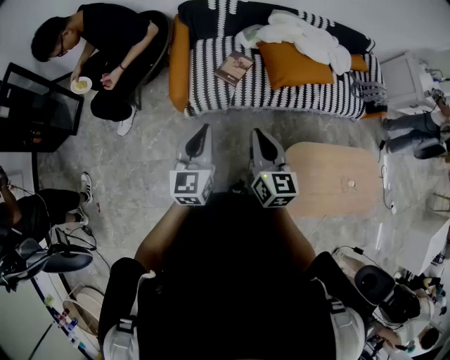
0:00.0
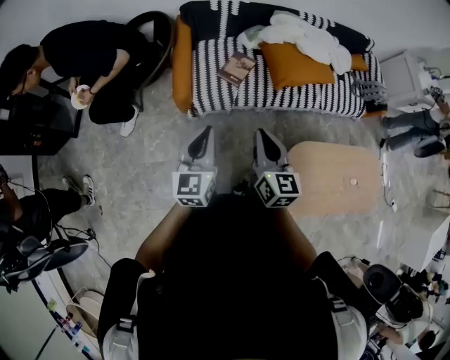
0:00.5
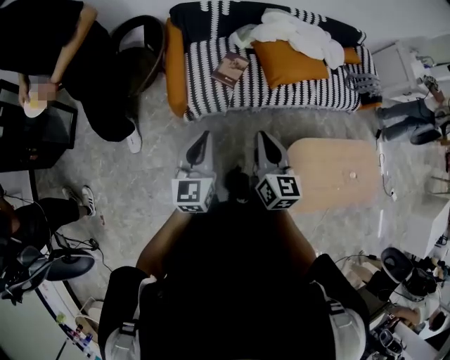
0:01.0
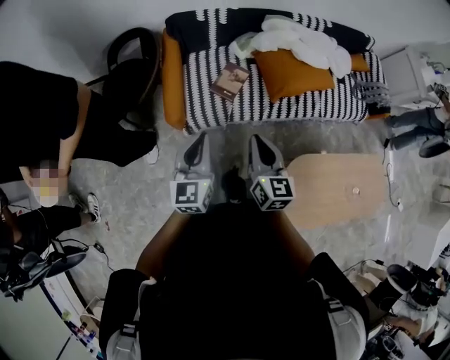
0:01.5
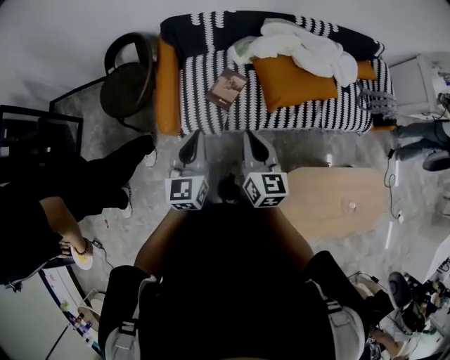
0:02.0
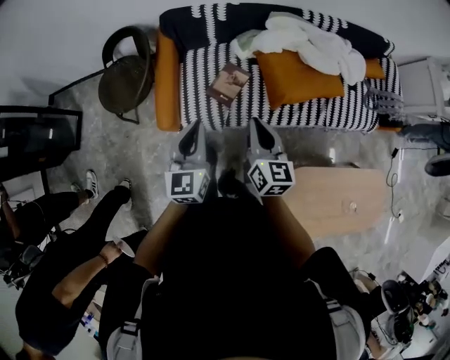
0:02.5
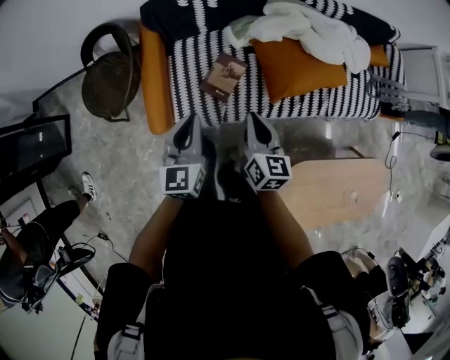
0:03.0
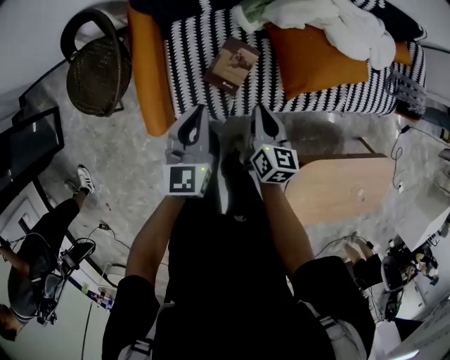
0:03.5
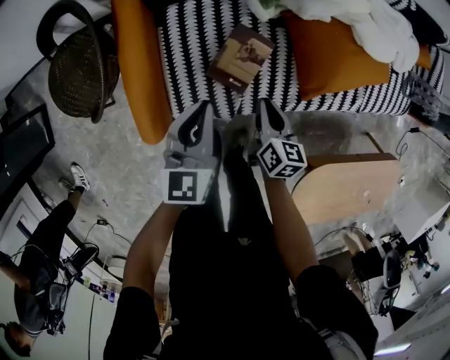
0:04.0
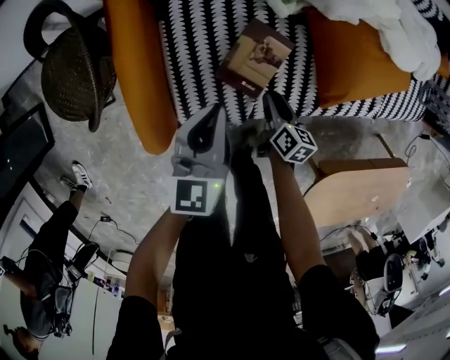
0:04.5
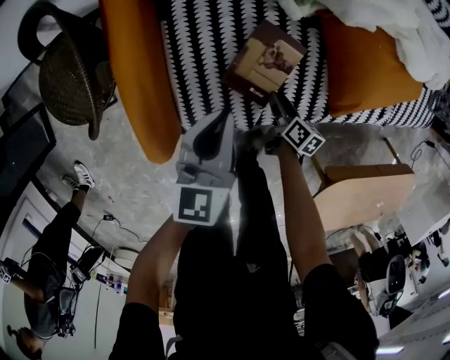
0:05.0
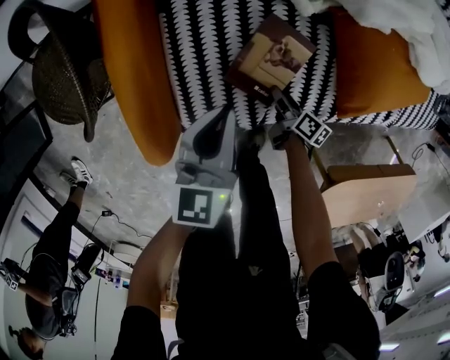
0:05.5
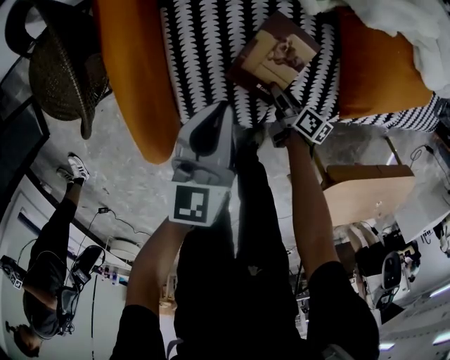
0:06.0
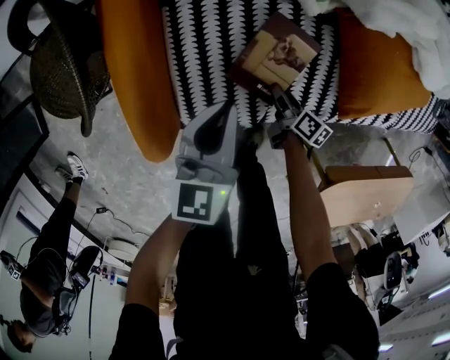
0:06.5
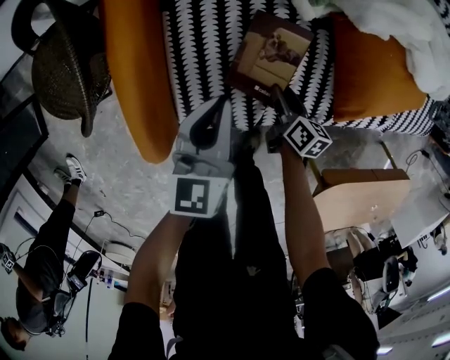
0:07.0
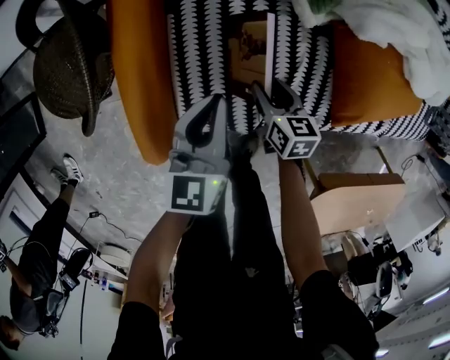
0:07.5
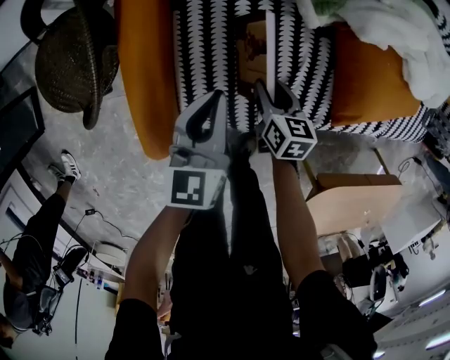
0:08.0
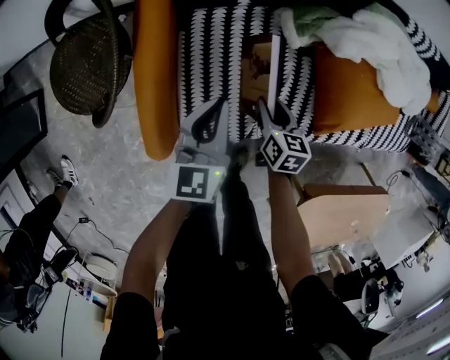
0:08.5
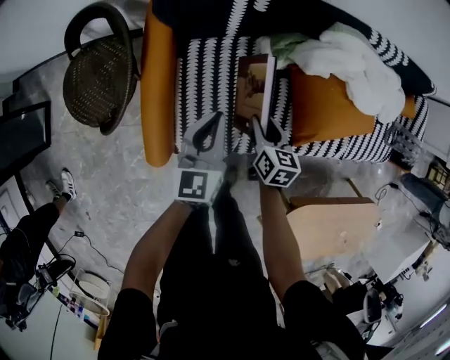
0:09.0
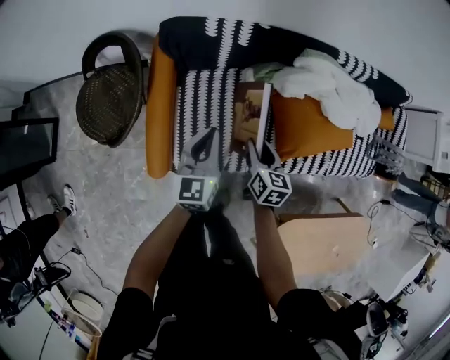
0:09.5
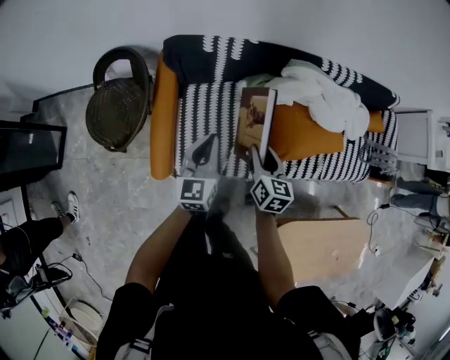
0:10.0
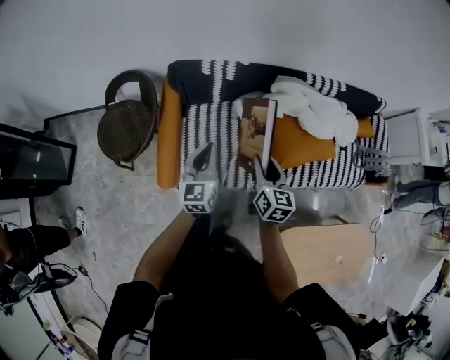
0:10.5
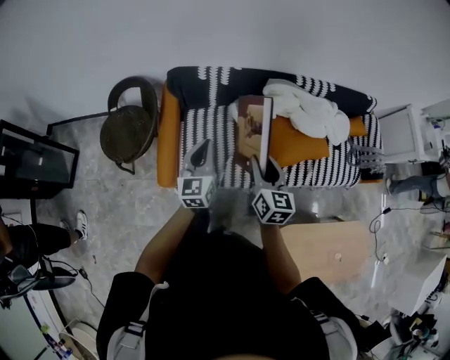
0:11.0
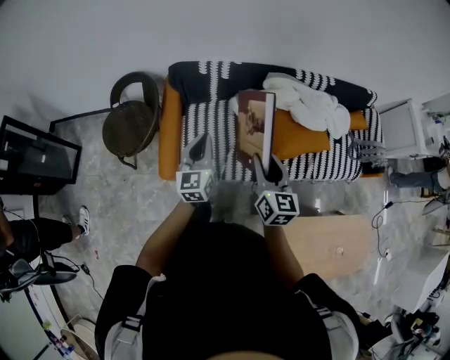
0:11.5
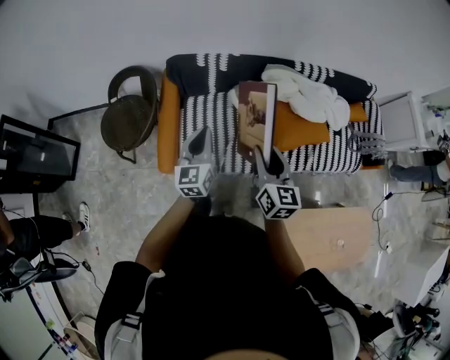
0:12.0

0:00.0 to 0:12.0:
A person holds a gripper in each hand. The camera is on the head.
0:00.0 to 0:02.0: Both grippers move forward, approximately 20 cm.
0:02.0 to 0:04.0: The right gripper goes about 40 cm downward and forward, and turns by some 30 degrees. The left gripper moves forward and downward, roughly 35 cm.
0:04.0 to 0:06.0: The right gripper travels downward by some 25 cm, changes its angle by about 40 degrees, and opens up. Meanwhile the left gripper travels downward by approximately 10 cm.
0:06.0 to 0:08.0: The right gripper moves upward, forward and to the left, about 15 cm, and changes its angle by some 40 degrees.
0:08.0 to 0:10.0: The two grippers go some 30 cm upward. The right gripper swivels approximately 20 degrees.
0:10.0 to 0:12.0: The left gripper shifts approximately 15 cm upward and backward. Meanwhile the right gripper travels upward and backward by some 25 cm.

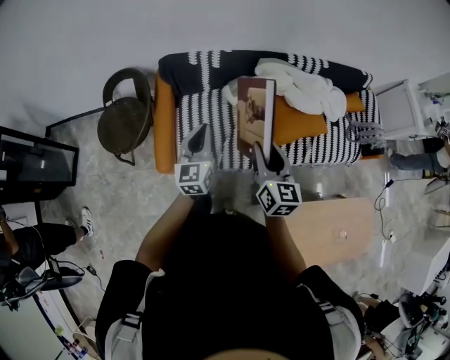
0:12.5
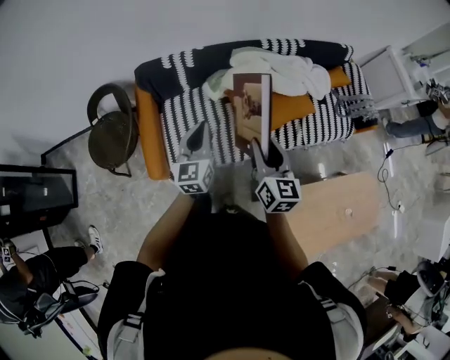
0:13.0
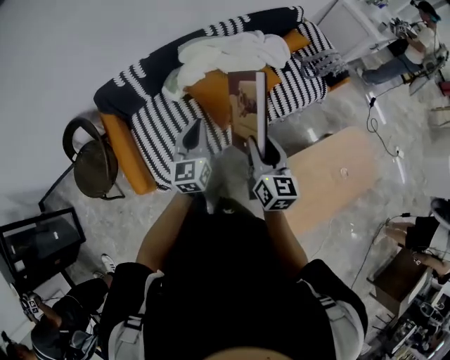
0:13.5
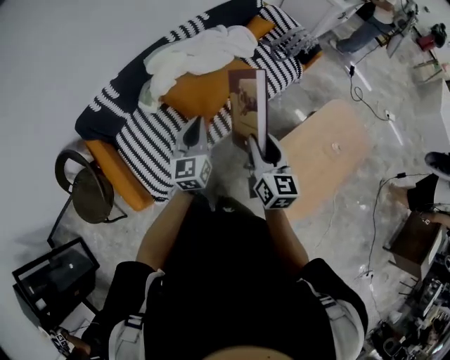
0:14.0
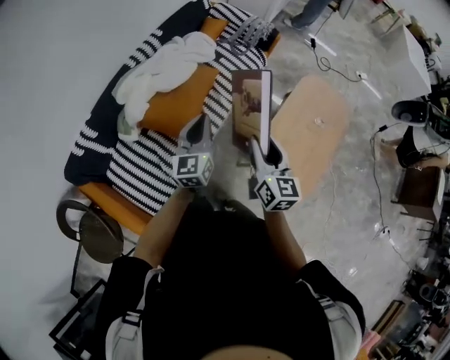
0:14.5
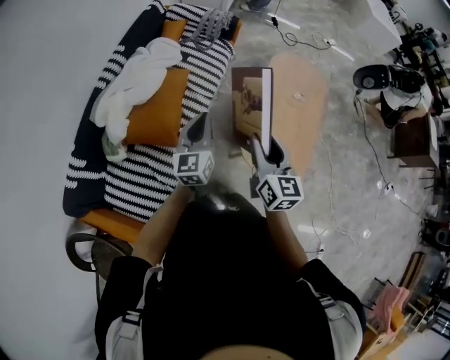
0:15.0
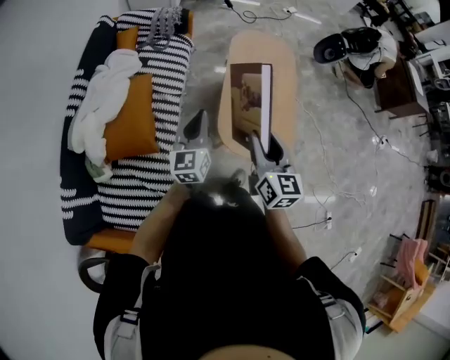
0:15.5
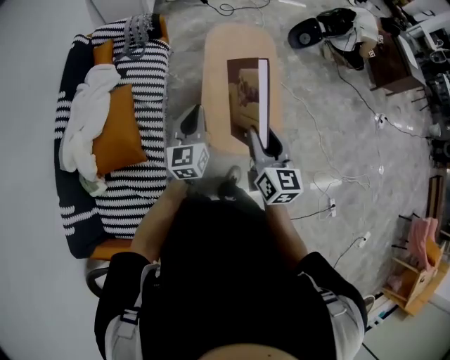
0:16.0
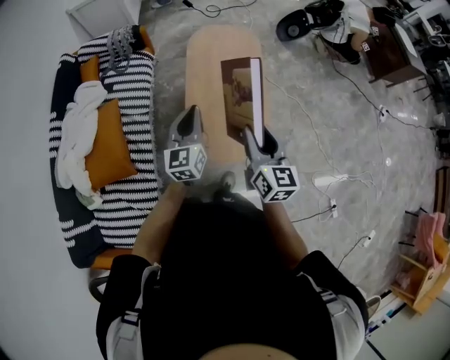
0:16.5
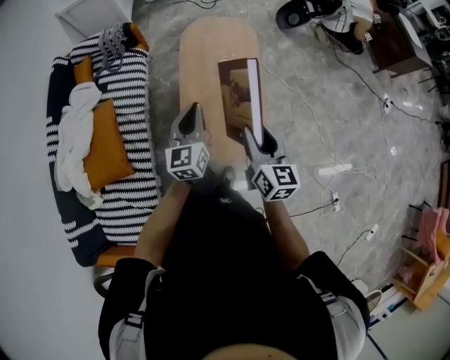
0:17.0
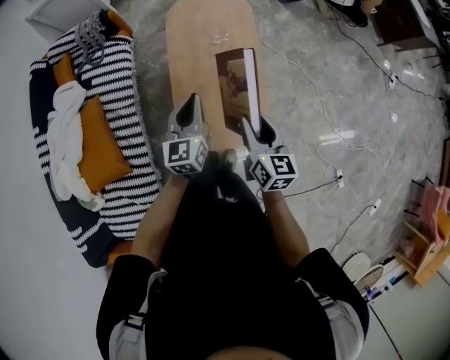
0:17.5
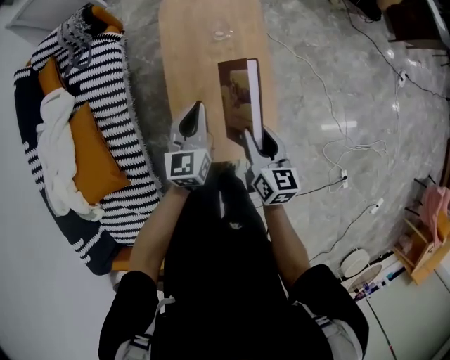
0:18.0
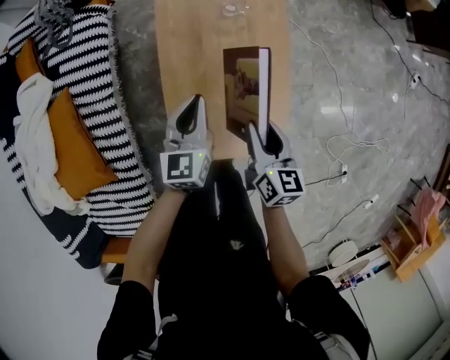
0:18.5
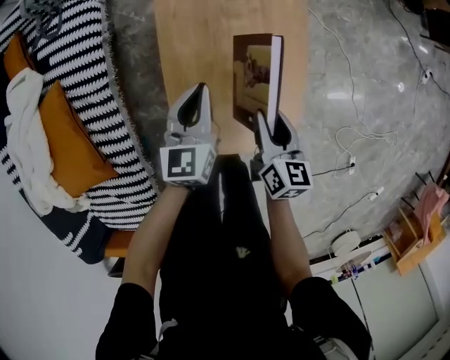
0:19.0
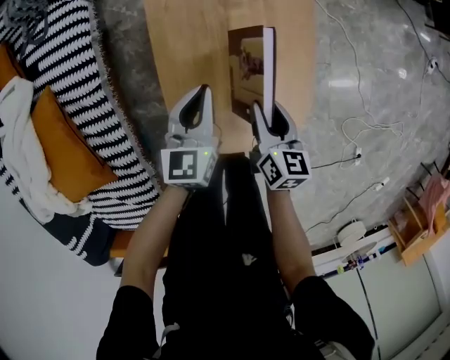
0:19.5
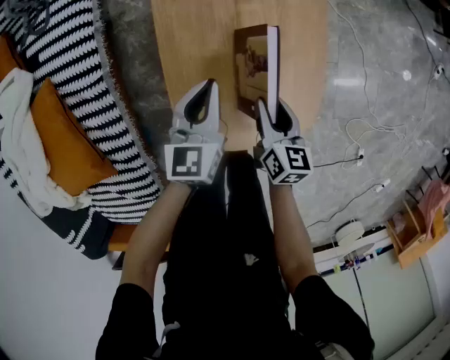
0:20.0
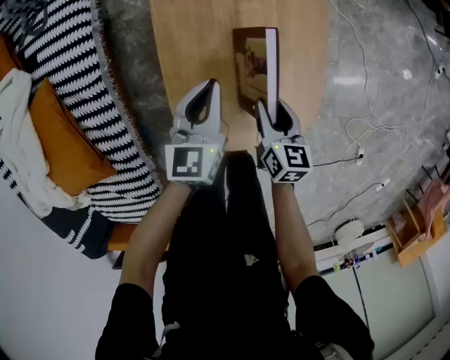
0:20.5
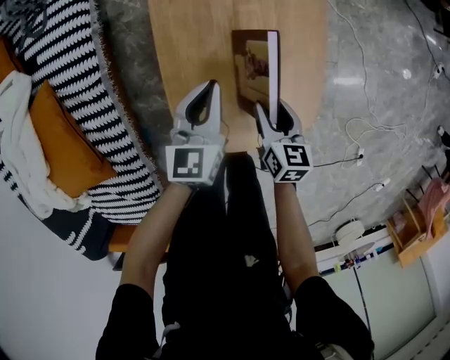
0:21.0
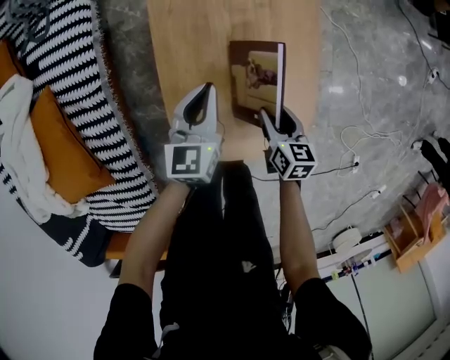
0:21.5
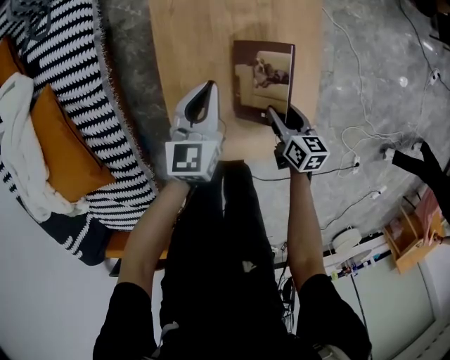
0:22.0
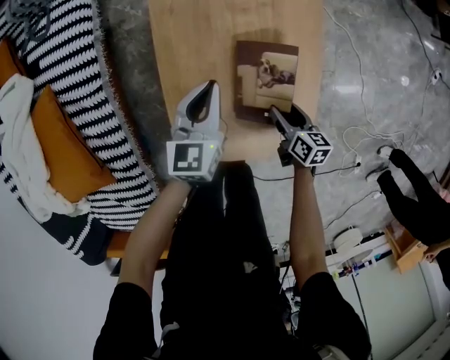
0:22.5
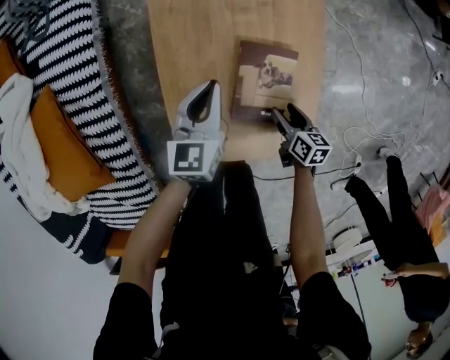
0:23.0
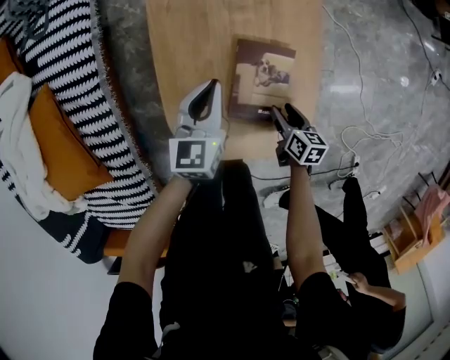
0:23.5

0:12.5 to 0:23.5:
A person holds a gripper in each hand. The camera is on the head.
0:12.5 to 0:14.5: The left gripper moves about 35 cm, and swivels approximately 50 degrees. The right gripper shifts by some 25 cm, and rotates some 50 degrees.
0:14.5 to 0:16.0: The right gripper shifts by approximately 25 cm, and changes its angle by roughly 30 degrees. The left gripper ends up about 30 cm from where it was, and changes its angle by approximately 30 degrees.
0:16.0 to 0:18.0: The left gripper heads forward, downward and to the right, covering roughly 30 cm; the right gripper travels downward, forward and to the right by roughly 30 cm, and turns by some 20 degrees.
0:18.0 to 0:20.0: The grippers both shift downward by about 25 cm.
0:20.0 to 0:21.5: The right gripper changes place by some 5 cm.
0:21.5 to 0:23.5: The right gripper shifts approximately 5 cm downward.

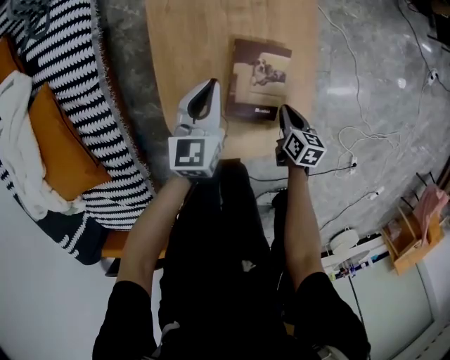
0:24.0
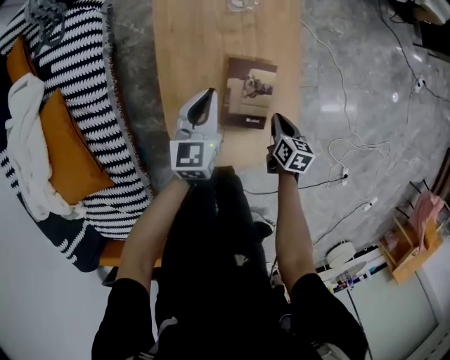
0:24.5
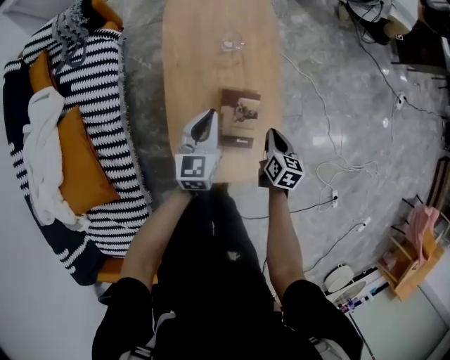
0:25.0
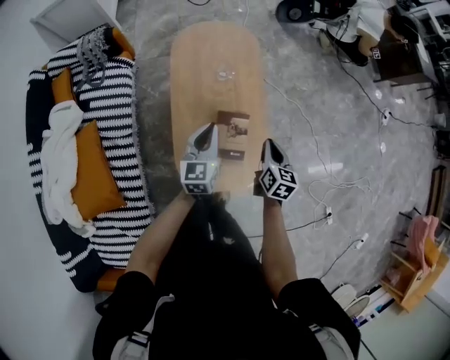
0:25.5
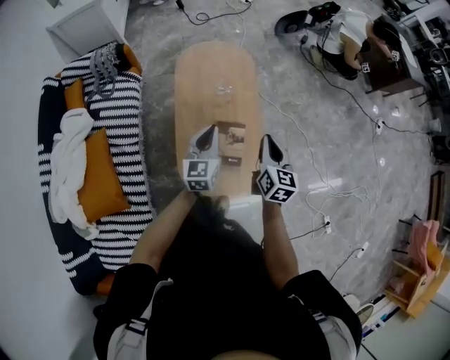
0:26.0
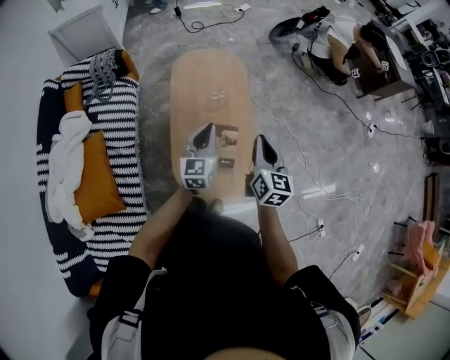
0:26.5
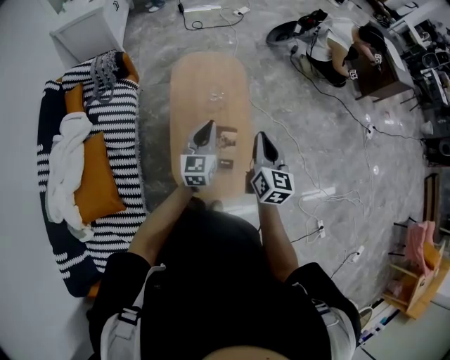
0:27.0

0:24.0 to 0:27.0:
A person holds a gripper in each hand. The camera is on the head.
0:24.0 to 0:25.5: The two grippers go approximately 30 cm upward. The right gripper turns by approximately 30 degrees.
0:25.5 to 0:27.0: The right gripper is displaced upward by some 20 cm, and swivels some 20 degrees, while the left gripper shifts approximately 10 cm upward.

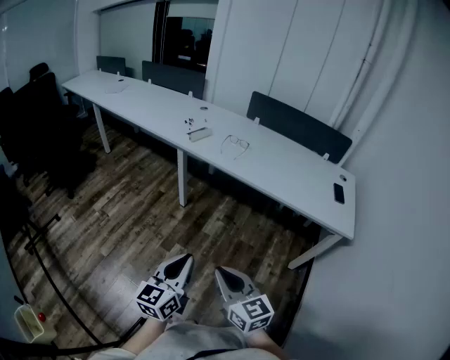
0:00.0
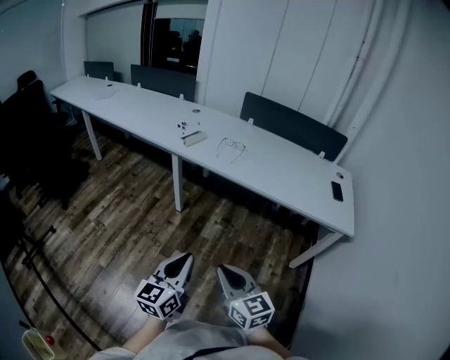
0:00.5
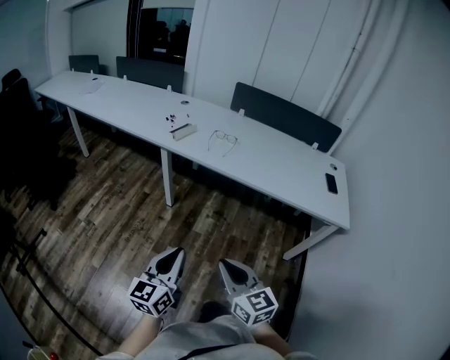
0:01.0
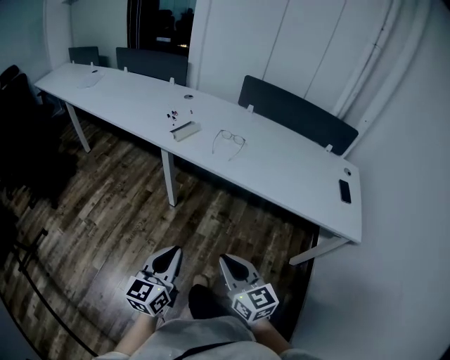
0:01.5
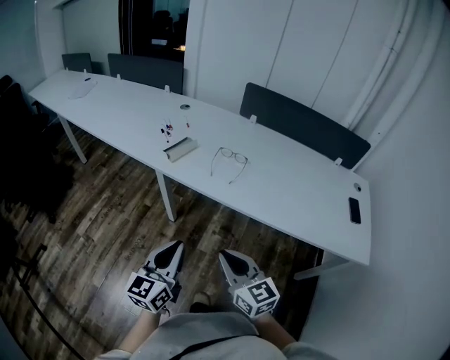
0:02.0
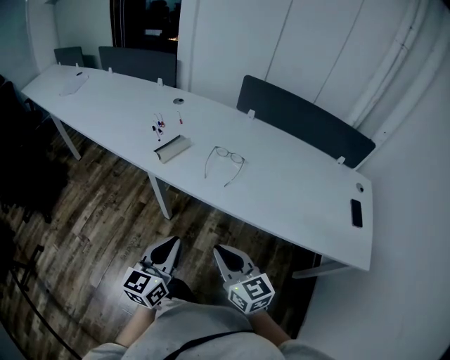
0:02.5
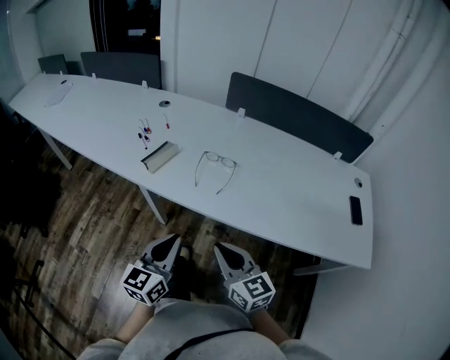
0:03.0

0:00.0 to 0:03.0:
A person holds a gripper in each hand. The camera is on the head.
0:00.0 to 0:01.5: Both grippers travel together forward, about 20 cm.
0:01.5 to 0:03.0: The two grippers go some 30 cm forward.
